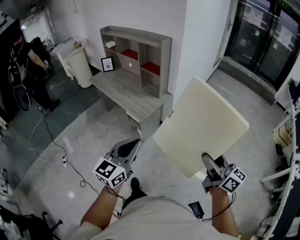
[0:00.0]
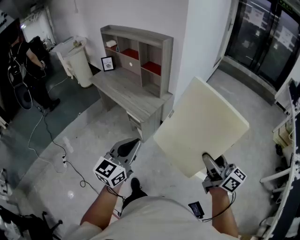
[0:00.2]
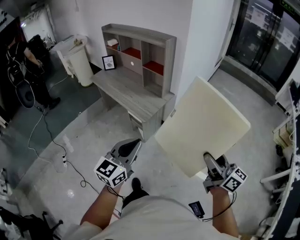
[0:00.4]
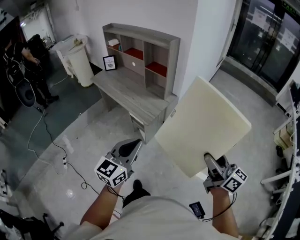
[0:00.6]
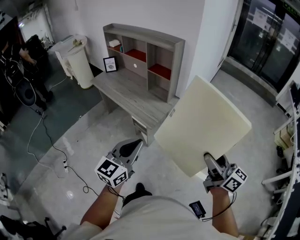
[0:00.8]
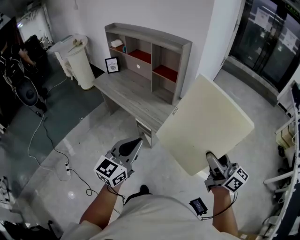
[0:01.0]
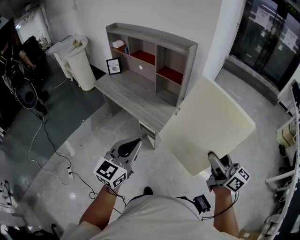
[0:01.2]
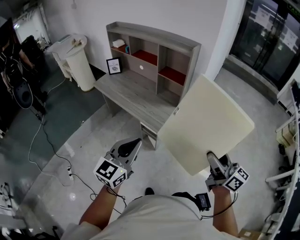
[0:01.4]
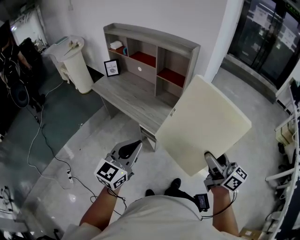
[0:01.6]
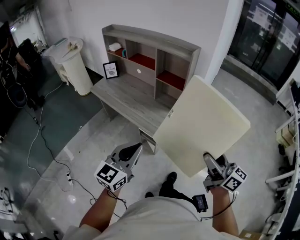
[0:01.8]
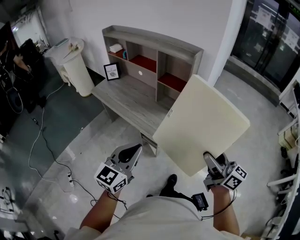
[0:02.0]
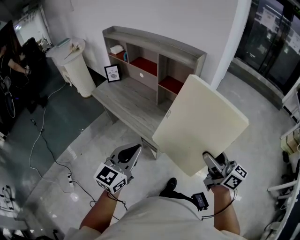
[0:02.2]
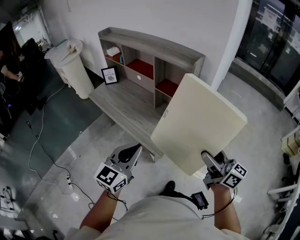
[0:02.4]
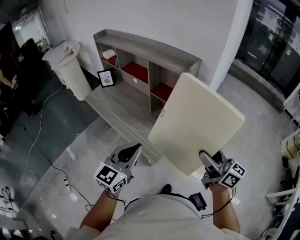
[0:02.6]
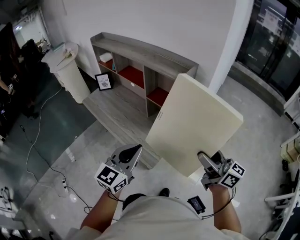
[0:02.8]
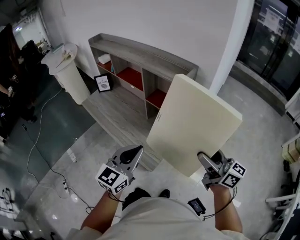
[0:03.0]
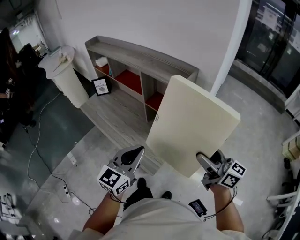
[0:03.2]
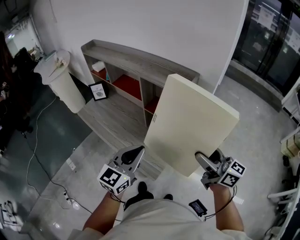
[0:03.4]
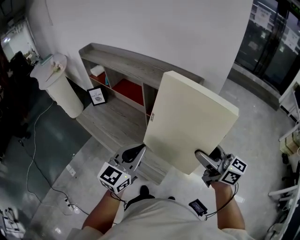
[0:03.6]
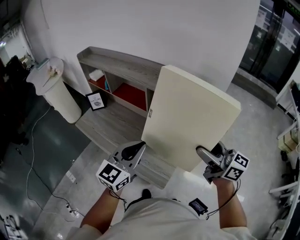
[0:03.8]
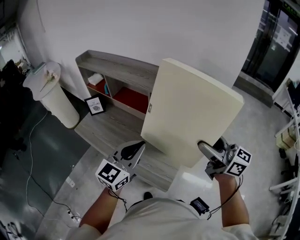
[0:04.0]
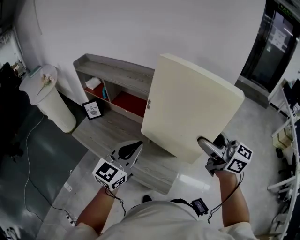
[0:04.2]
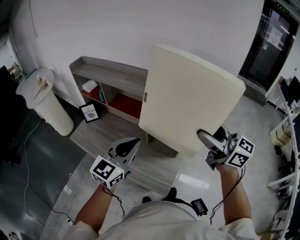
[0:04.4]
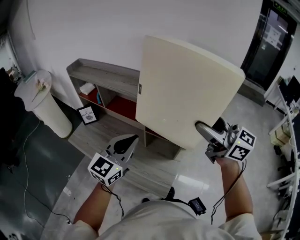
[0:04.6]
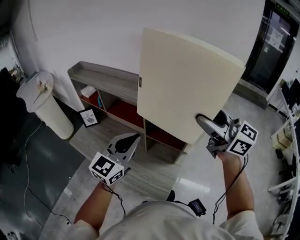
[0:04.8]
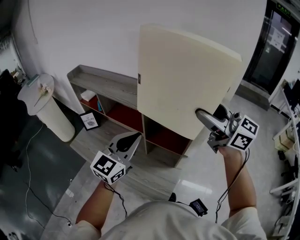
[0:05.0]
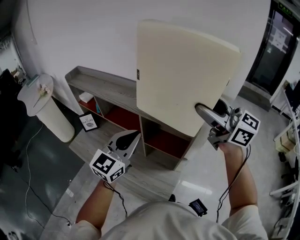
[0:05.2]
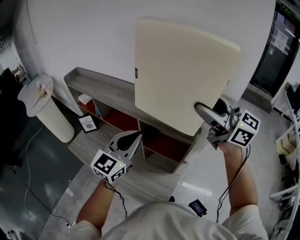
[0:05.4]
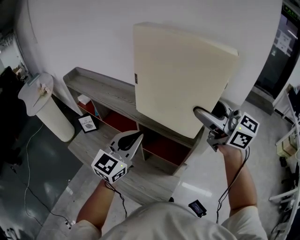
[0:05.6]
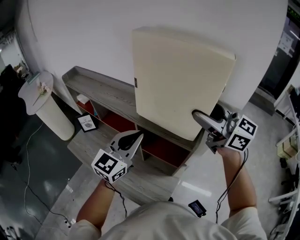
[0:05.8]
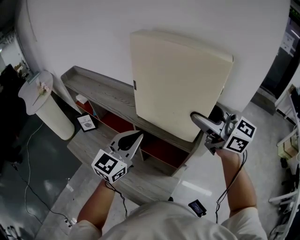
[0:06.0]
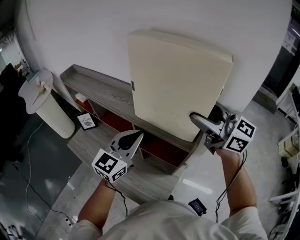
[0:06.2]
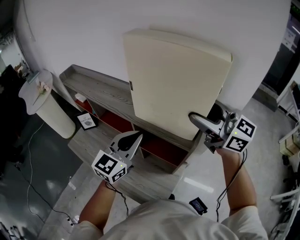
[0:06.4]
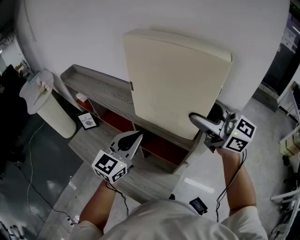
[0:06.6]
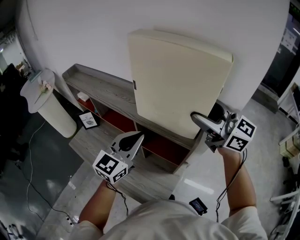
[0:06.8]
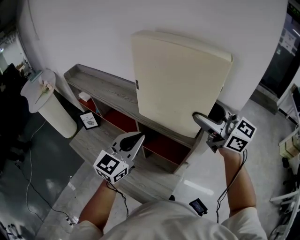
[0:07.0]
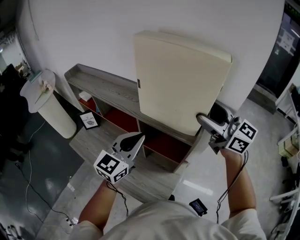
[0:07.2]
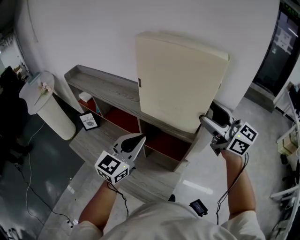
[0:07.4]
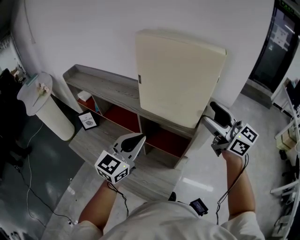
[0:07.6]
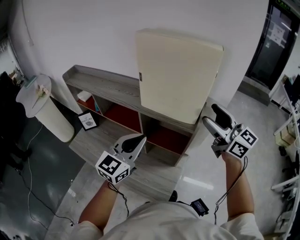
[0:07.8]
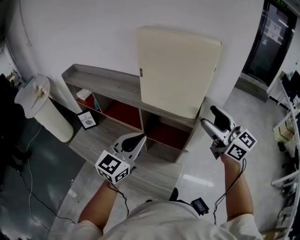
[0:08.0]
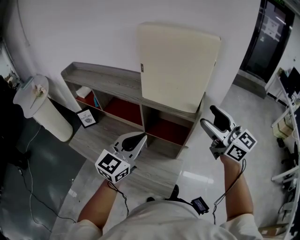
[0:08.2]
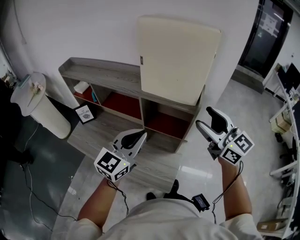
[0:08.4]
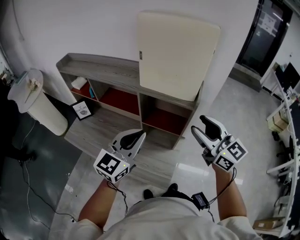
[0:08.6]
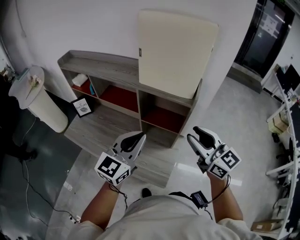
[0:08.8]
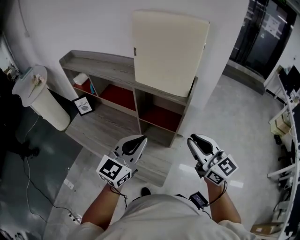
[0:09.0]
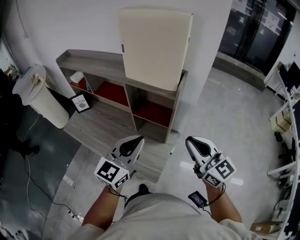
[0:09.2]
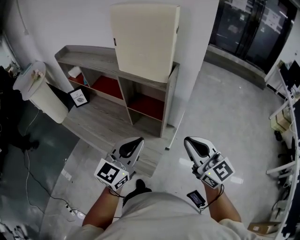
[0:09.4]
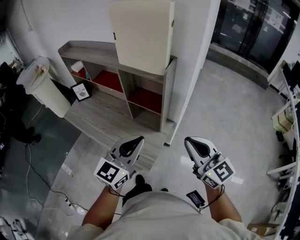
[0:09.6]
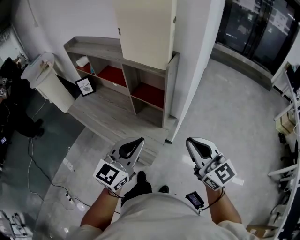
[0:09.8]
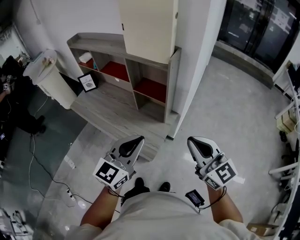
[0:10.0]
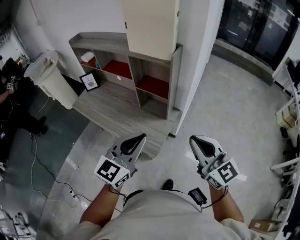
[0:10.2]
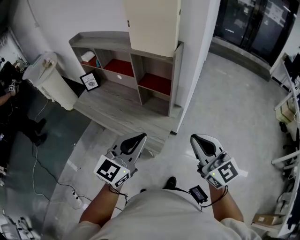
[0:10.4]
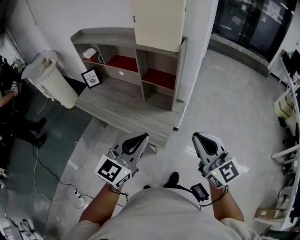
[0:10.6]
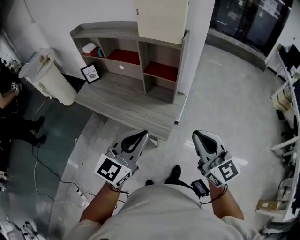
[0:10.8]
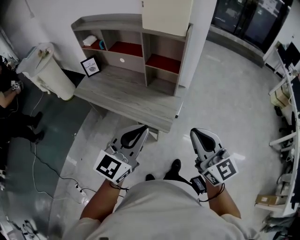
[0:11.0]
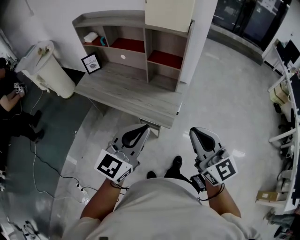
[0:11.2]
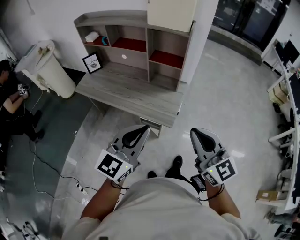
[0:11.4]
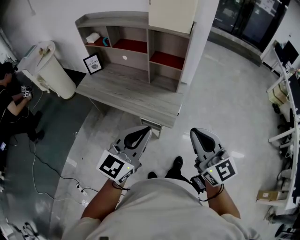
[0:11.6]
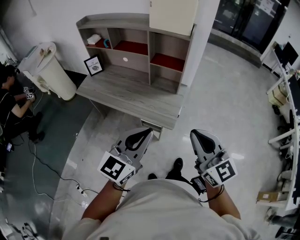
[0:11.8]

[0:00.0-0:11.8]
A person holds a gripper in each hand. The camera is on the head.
0:00.0 to 0:01.4: Both grippers move to the left and forward, approximately 25 cm.
0:01.4 to 0:03.0: The right gripper heads forward, covering some 30 cm. Meanwhile the left gripper heads forward and to the right, covering some 30 cm.
0:03.0 to 0:04.4: The right gripper heads forward, to the left and upward, covering roughly 25 cm, while the left gripper travels forward and to the left by roughly 25 cm.
0:04.4 to 0:06.0: The left gripper is displaced forward and to the right by approximately 15 cm; the right gripper travels forward by about 20 cm.
0:06.0 to 0:07.4: The grippers stay close to where they were, moving slightly.
0:07.4 to 0:08.8: The right gripper travels backward and downward by about 20 cm, and closes its fingers; the left gripper shifts approximately 10 cm backward.
0:08.8 to 0:10.4: Both grippers move backward, about 25 cm. The right gripper closes.
0:10.4 to 0:11.8: The two grippers go roughly 20 cm backward and to the left.

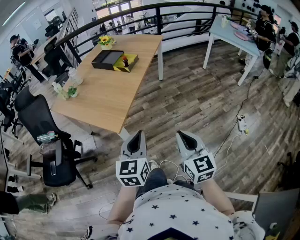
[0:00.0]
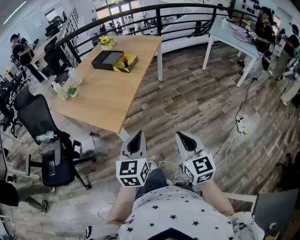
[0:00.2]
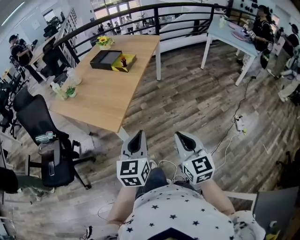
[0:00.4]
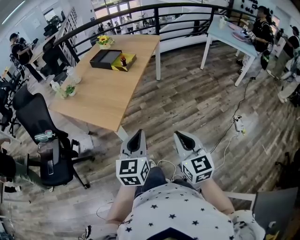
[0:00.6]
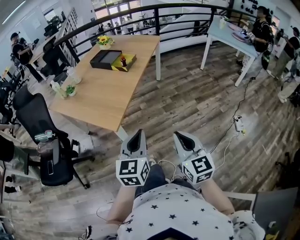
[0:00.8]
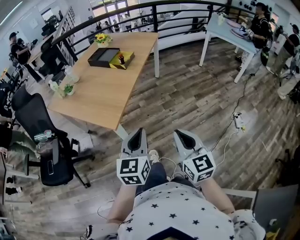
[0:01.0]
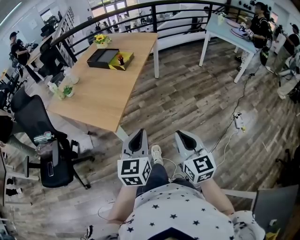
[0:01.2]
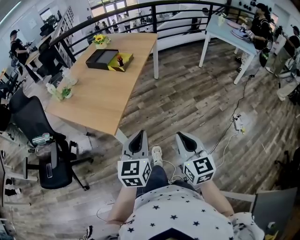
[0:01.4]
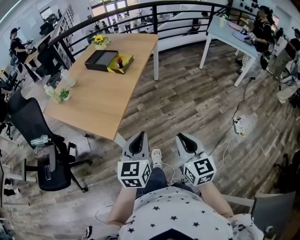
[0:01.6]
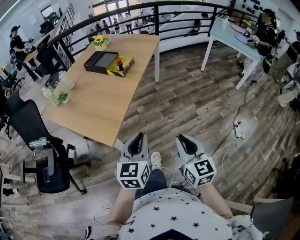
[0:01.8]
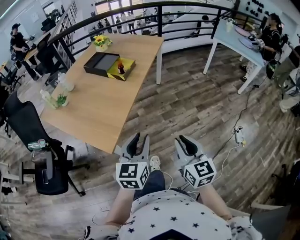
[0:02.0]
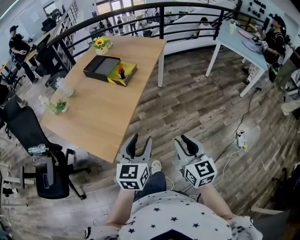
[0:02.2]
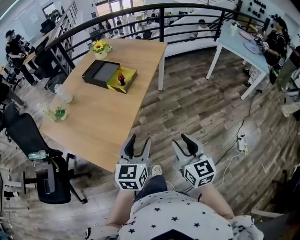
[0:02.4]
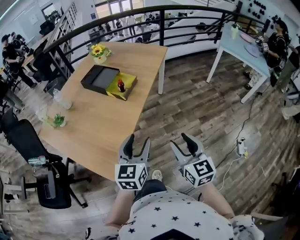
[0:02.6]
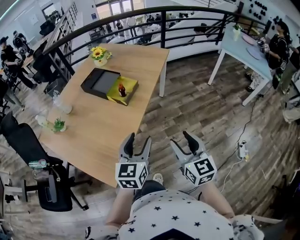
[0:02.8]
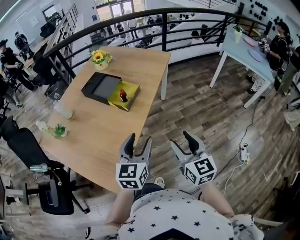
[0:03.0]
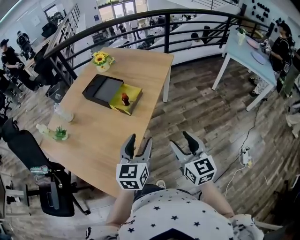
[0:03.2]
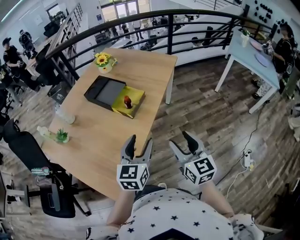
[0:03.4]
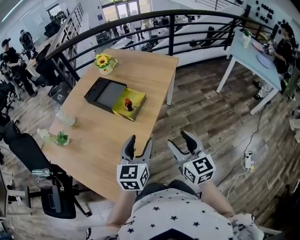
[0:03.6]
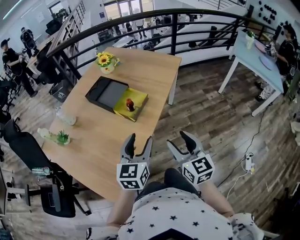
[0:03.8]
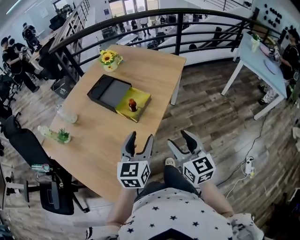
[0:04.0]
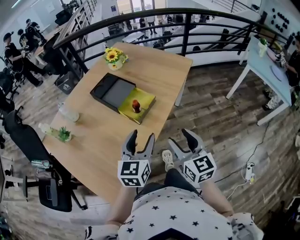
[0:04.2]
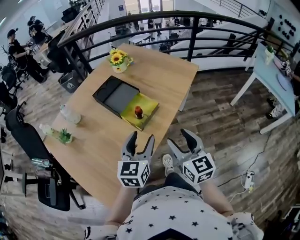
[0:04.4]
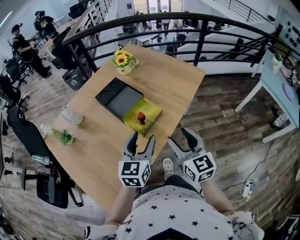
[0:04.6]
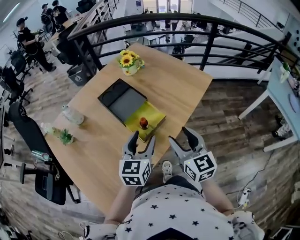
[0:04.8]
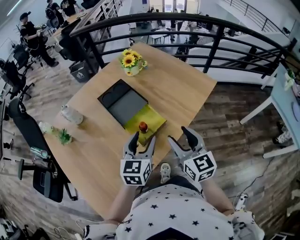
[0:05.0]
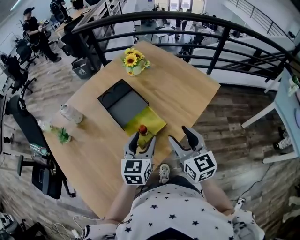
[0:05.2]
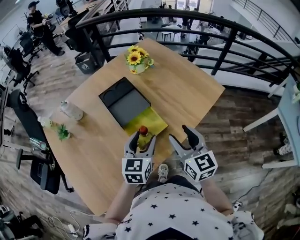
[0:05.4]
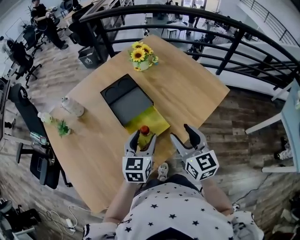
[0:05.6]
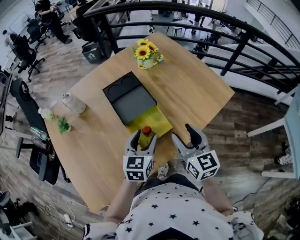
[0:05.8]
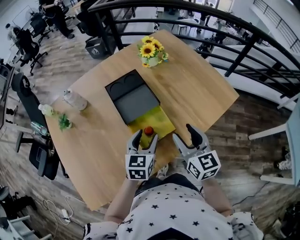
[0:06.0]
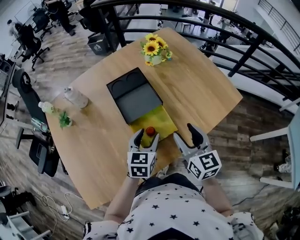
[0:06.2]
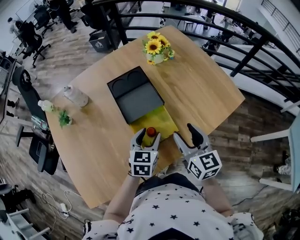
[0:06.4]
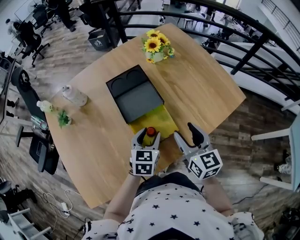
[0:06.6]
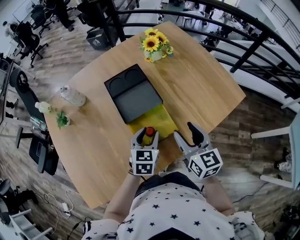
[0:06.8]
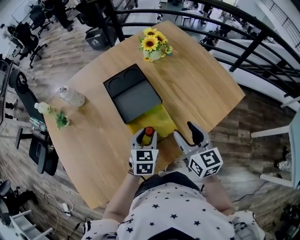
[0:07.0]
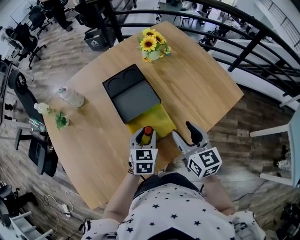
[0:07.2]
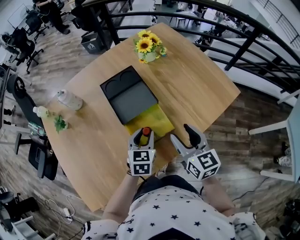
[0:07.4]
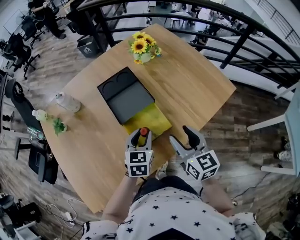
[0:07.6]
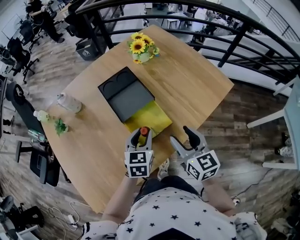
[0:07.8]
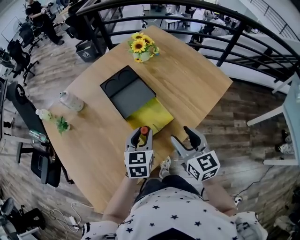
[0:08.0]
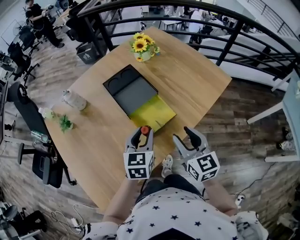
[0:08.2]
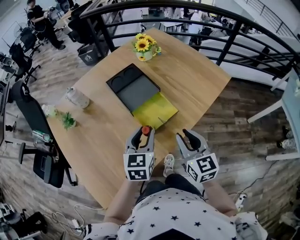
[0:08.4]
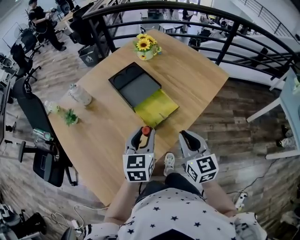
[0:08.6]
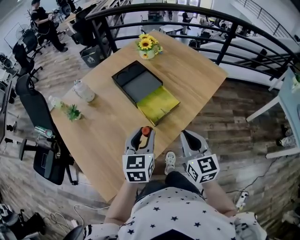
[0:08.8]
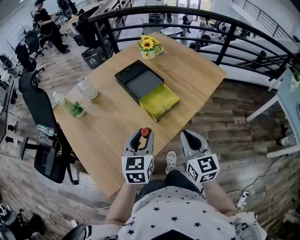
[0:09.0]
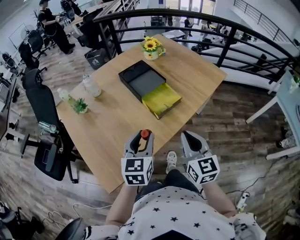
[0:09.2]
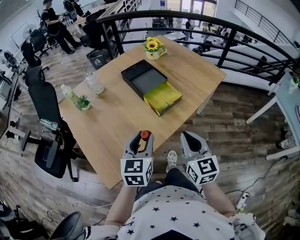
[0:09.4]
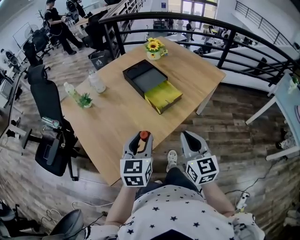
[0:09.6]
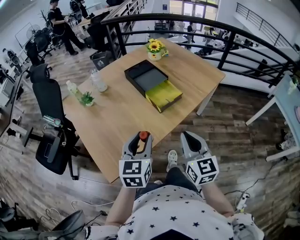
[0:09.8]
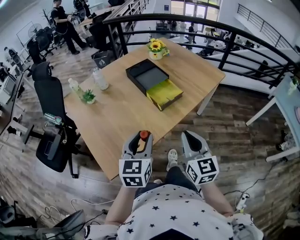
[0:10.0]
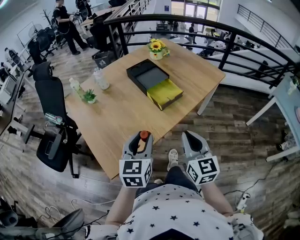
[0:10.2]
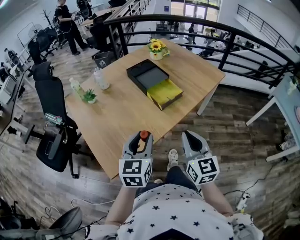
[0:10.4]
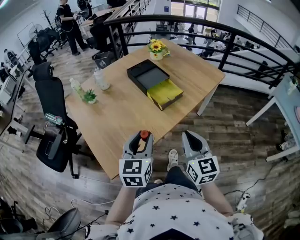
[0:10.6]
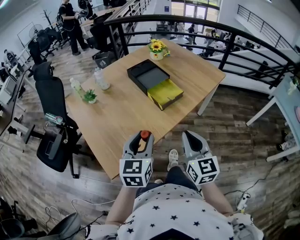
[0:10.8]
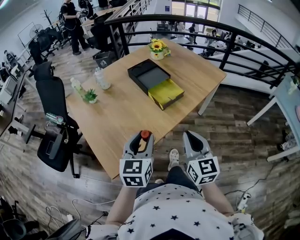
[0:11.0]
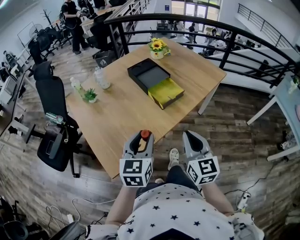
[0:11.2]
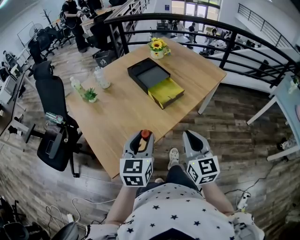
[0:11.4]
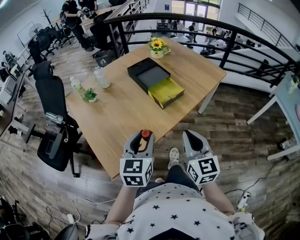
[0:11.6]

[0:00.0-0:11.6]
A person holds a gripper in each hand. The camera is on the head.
0:00.0 to 0:01.4: There are only small adjustments of the grippers.
0:01.4 to 0:02.8: The grippers both shift forward by about 35 cm. The right gripper opens its fingers, while the left gripper opens.
0:02.8 to 0:04.4: The two grippers go some 25 cm forward.
0:04.4 to 0:05.8: The right gripper shifts approximately 20 cm forward, while the left gripper moves forward and downward, roughly 20 cm, and rotates approximately 20 degrees.
0:05.8 to 0:07.2: The right gripper changes place by some 5 cm. The left gripper shifts roughly 5 cm downward, and closes up.
0:07.2 to 0:08.8: The left gripper shifts roughly 20 cm backward, upward and to the left, while the right gripper travels backward by approximately 20 cm, and closes up.
0:08.8 to 0:10.2: Both grippers move backward, about 15 cm.
0:10.2 to 0:11.6: Neither gripper changes place.
